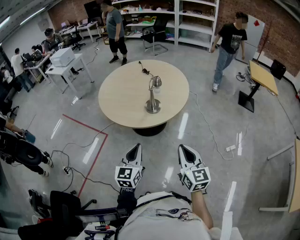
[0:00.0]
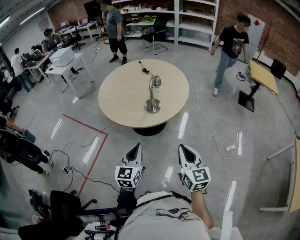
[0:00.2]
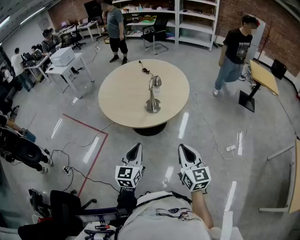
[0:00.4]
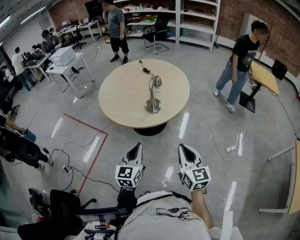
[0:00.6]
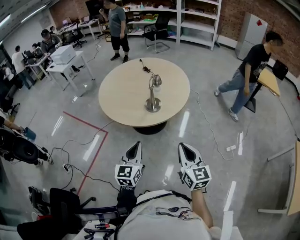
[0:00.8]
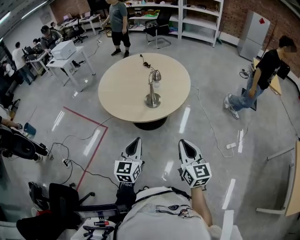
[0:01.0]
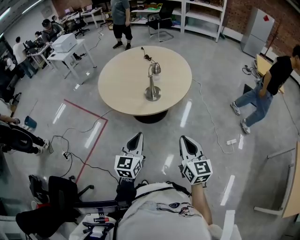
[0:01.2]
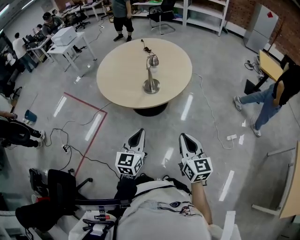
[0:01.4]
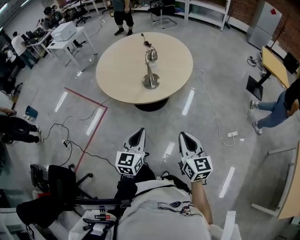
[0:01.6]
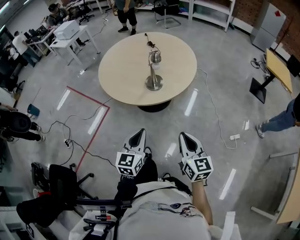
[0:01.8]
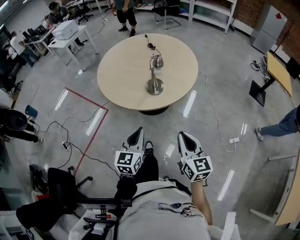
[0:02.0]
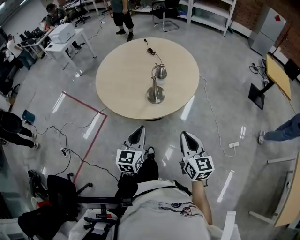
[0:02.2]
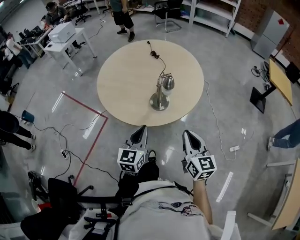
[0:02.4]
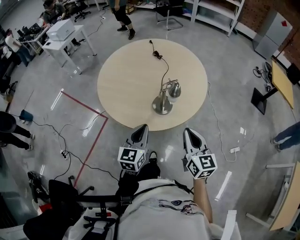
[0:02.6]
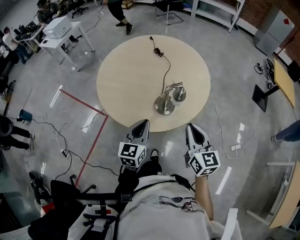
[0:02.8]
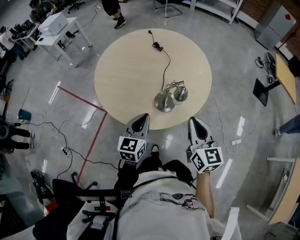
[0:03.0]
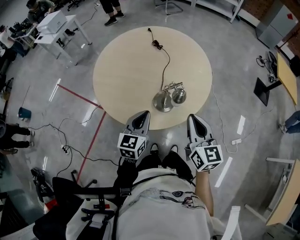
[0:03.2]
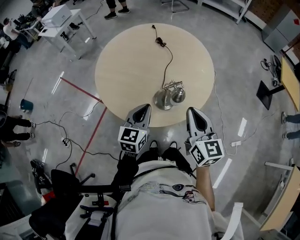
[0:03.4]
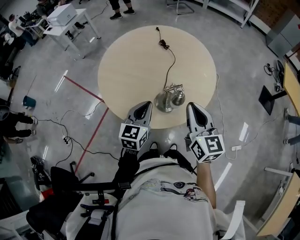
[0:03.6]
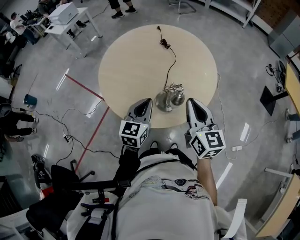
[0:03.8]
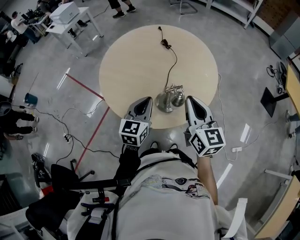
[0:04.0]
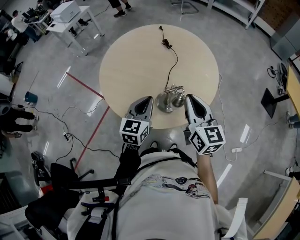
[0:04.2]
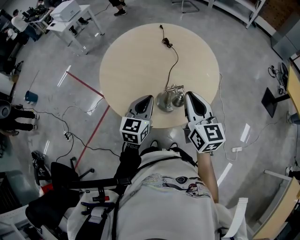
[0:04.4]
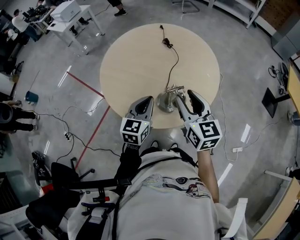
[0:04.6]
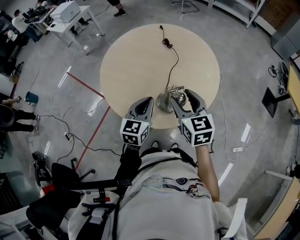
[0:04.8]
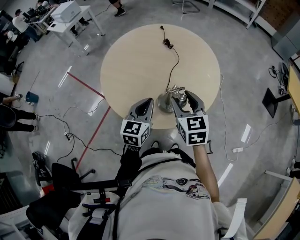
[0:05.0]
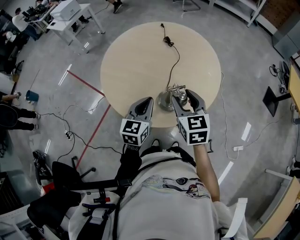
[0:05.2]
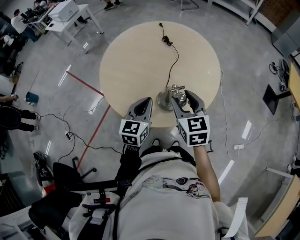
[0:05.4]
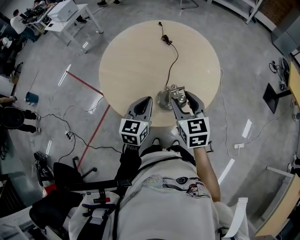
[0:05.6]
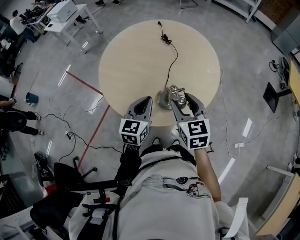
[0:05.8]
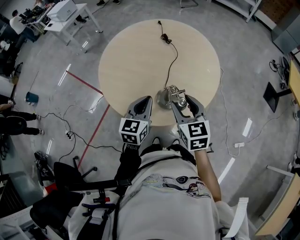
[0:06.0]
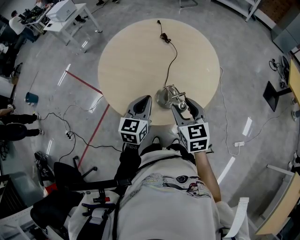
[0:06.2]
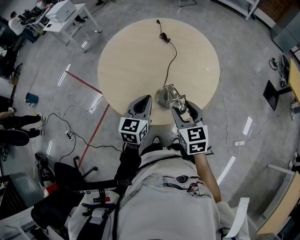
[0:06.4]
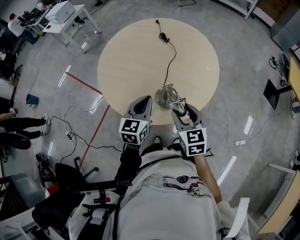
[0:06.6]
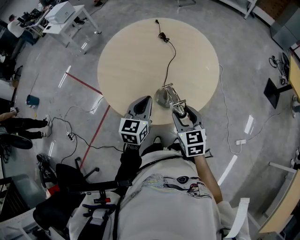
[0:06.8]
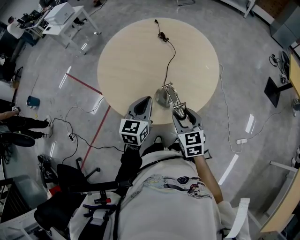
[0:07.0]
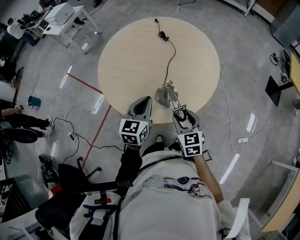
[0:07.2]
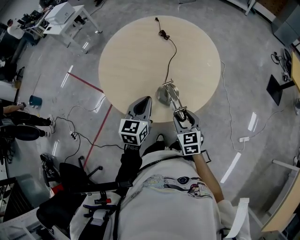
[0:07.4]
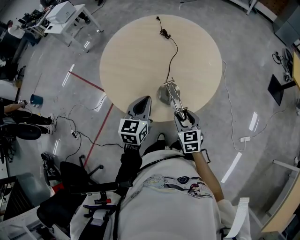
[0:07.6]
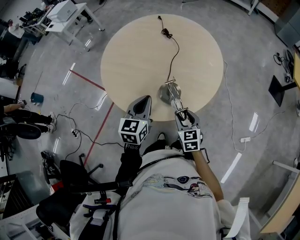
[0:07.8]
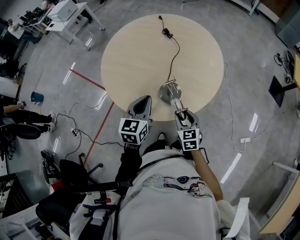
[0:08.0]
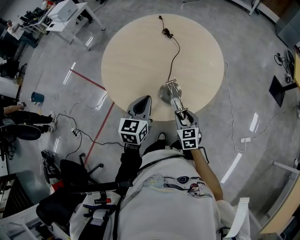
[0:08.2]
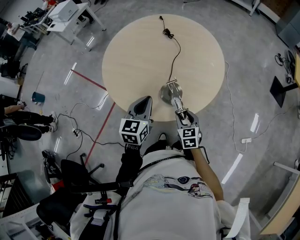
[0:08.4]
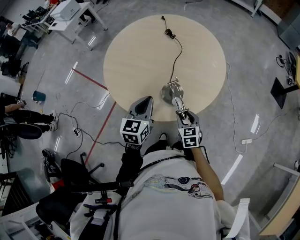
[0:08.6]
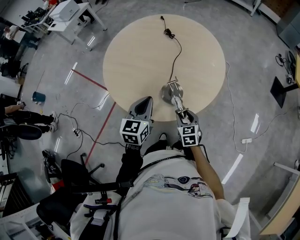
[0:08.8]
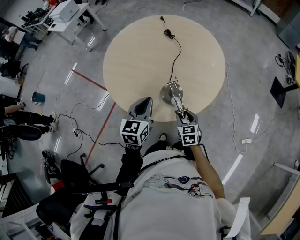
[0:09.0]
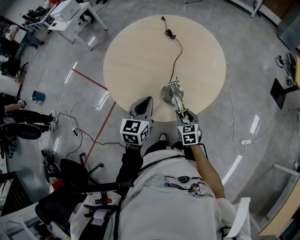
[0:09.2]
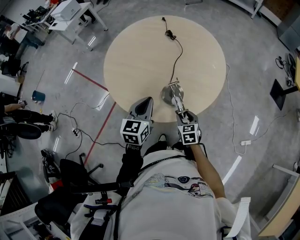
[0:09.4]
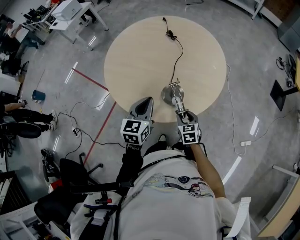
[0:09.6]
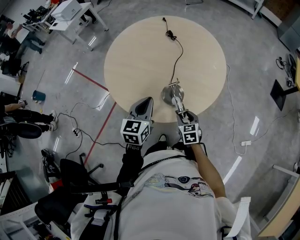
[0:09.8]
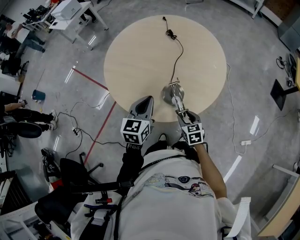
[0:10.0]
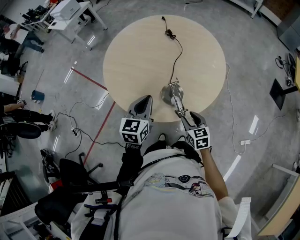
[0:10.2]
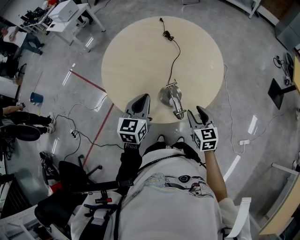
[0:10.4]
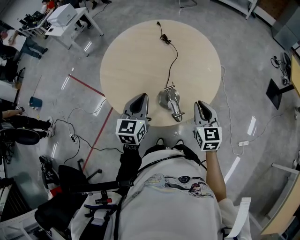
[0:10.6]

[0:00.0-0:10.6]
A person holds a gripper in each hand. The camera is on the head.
0:00.0 to 0:01.6: The grippers both shift to the right by approximately 5 cm.
0:01.6 to 0:03.0: The grippers both shift forward by some 30 cm.
0:03.0 to 0:04.6: Both grippers travel together forward, approximately 10 cm. The right gripper opens.
0:04.6 to 0:06.0: The right gripper is displaced downward by some 5 cm.
0:06.0 to 0:07.6: The right gripper goes some 15 cm downward.
0:07.6 to 0:09.0: The right gripper travels downward by about 5 cm.
0:09.0 to 0:10.6: The right gripper travels upward and to the right by approximately 20 cm, changes its angle by approximately 20 degrees, and closes its fingers.

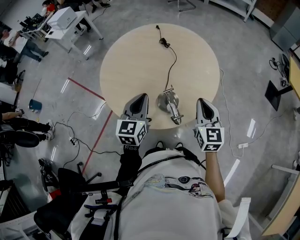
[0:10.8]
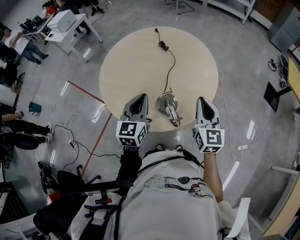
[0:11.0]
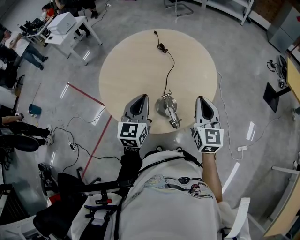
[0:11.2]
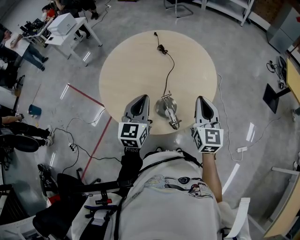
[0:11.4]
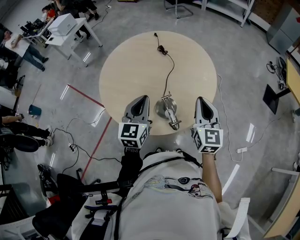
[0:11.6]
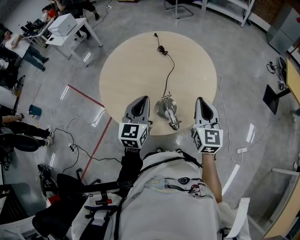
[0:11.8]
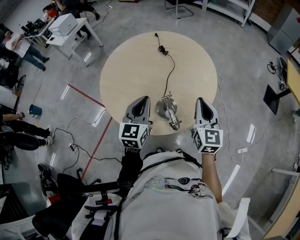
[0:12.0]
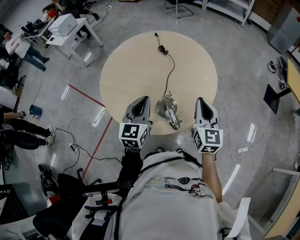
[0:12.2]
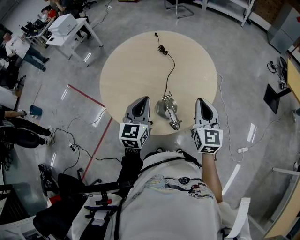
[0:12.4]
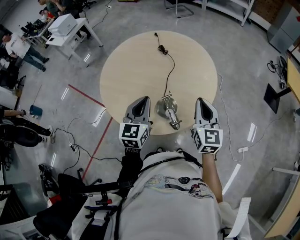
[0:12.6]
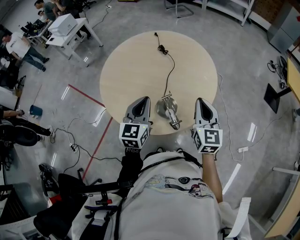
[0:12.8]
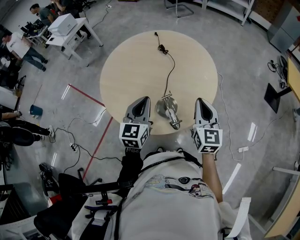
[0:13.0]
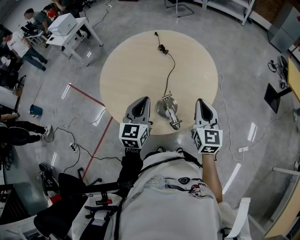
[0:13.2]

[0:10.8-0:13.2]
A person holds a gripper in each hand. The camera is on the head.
0:10.8 to 0:12.0: There are only small adjustments of the grippers.
0:12.0 to 0:13.2: The two grippers keep their place.

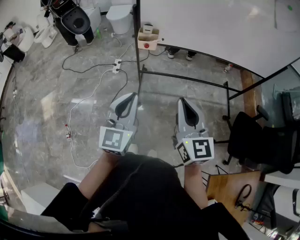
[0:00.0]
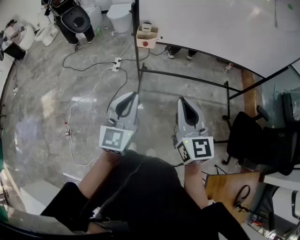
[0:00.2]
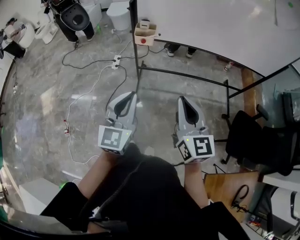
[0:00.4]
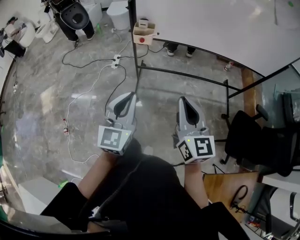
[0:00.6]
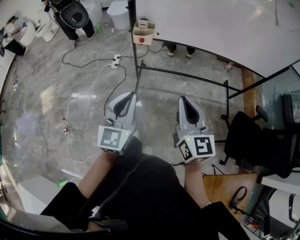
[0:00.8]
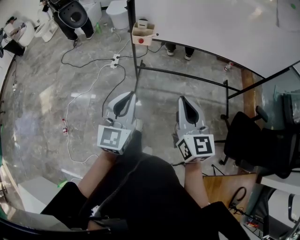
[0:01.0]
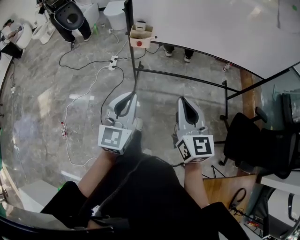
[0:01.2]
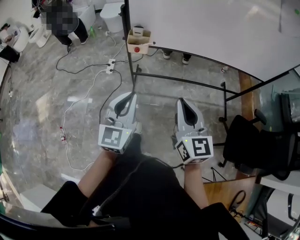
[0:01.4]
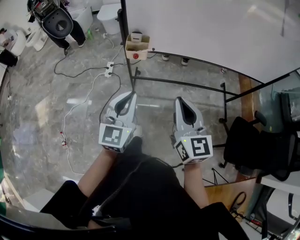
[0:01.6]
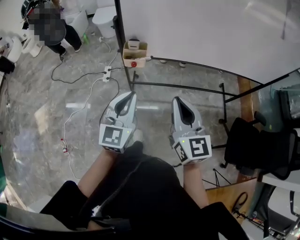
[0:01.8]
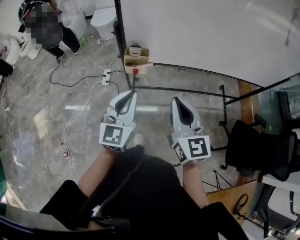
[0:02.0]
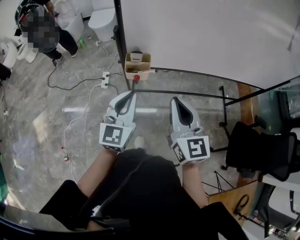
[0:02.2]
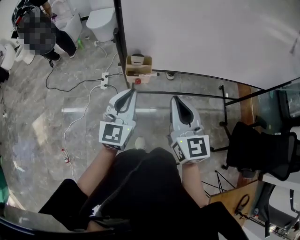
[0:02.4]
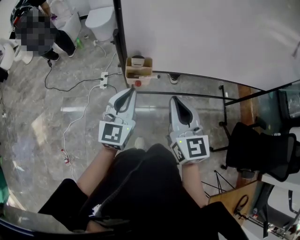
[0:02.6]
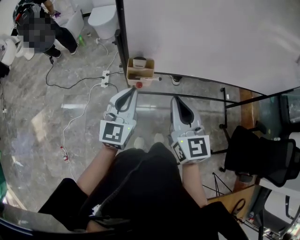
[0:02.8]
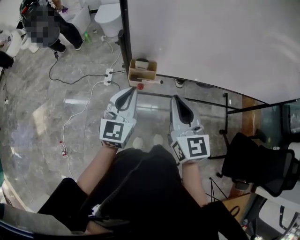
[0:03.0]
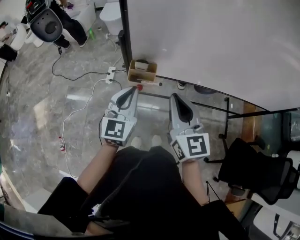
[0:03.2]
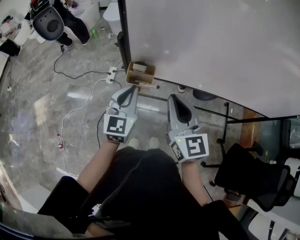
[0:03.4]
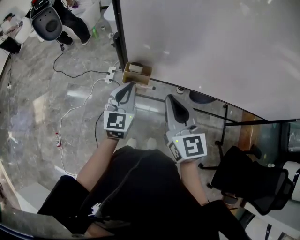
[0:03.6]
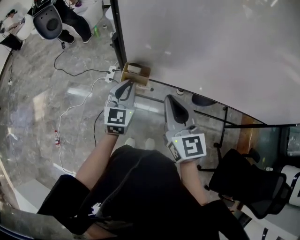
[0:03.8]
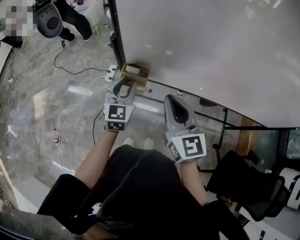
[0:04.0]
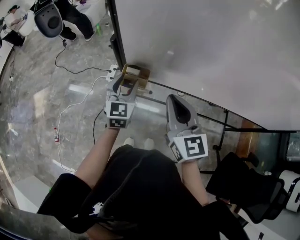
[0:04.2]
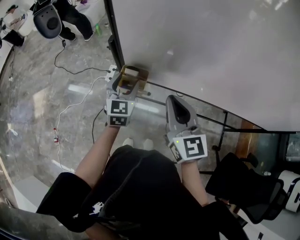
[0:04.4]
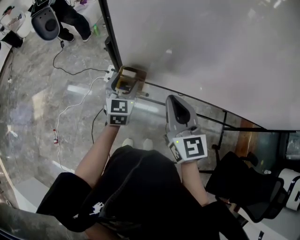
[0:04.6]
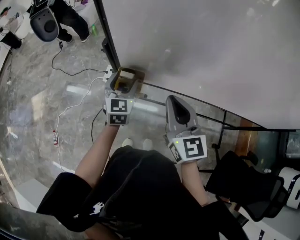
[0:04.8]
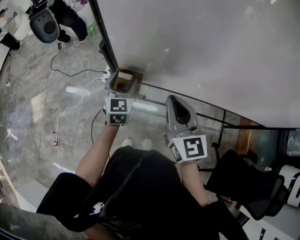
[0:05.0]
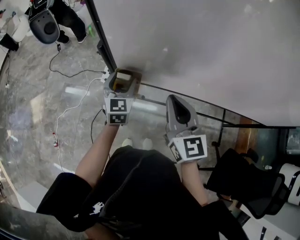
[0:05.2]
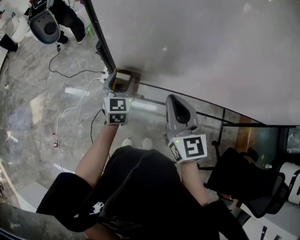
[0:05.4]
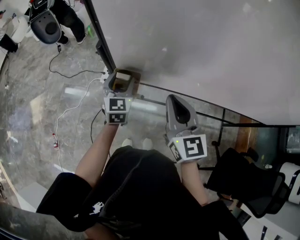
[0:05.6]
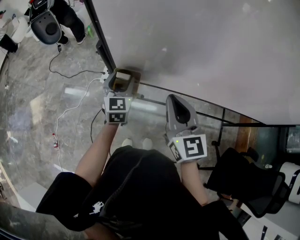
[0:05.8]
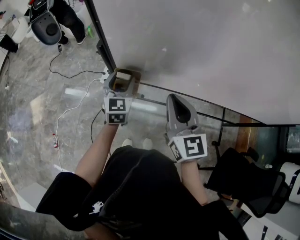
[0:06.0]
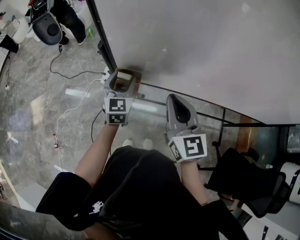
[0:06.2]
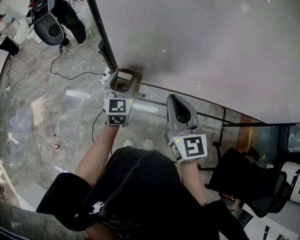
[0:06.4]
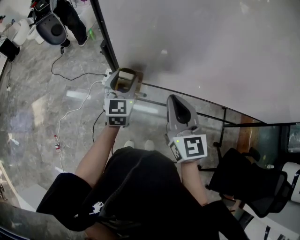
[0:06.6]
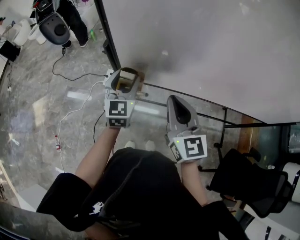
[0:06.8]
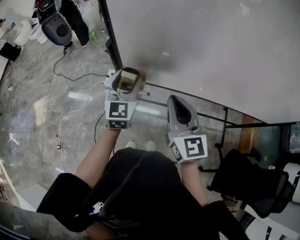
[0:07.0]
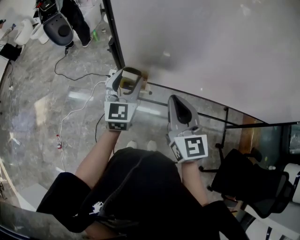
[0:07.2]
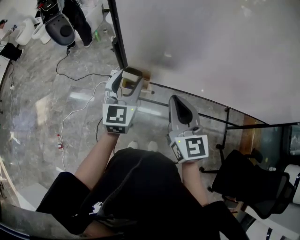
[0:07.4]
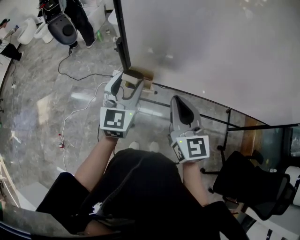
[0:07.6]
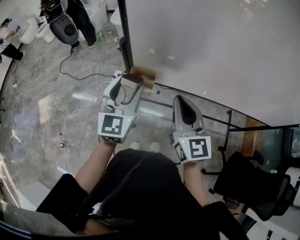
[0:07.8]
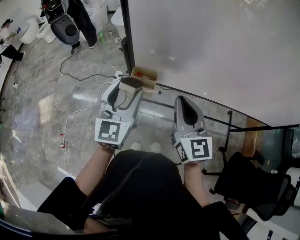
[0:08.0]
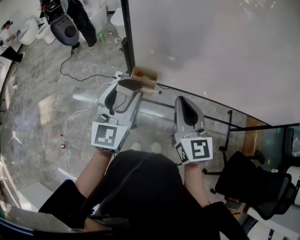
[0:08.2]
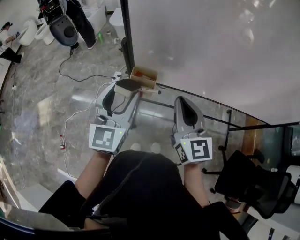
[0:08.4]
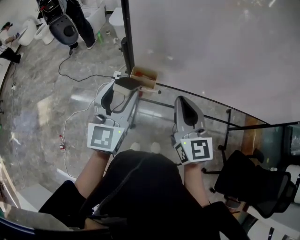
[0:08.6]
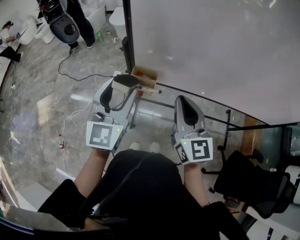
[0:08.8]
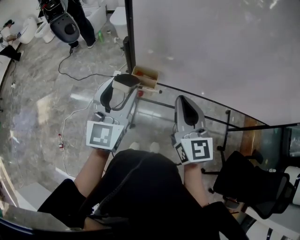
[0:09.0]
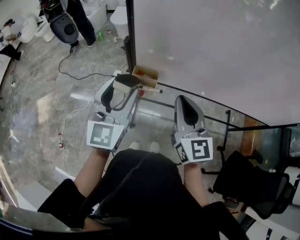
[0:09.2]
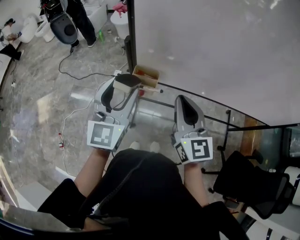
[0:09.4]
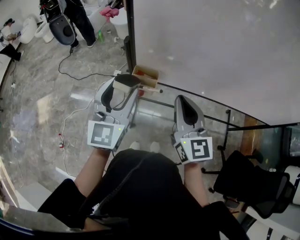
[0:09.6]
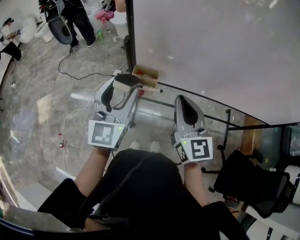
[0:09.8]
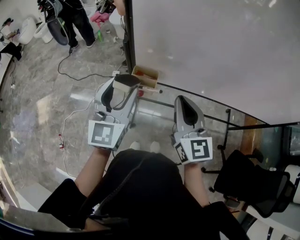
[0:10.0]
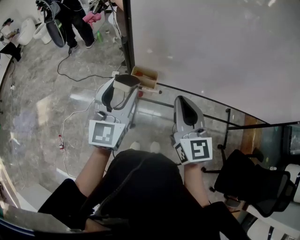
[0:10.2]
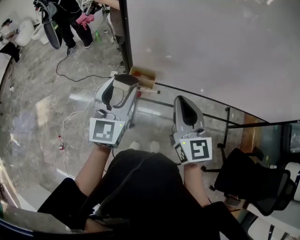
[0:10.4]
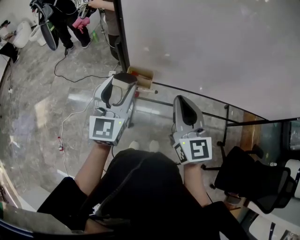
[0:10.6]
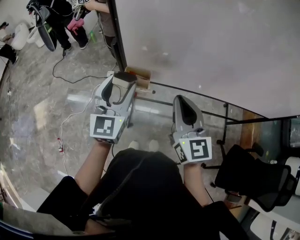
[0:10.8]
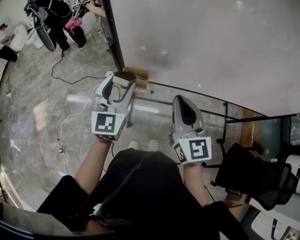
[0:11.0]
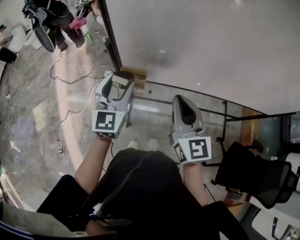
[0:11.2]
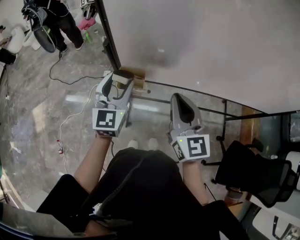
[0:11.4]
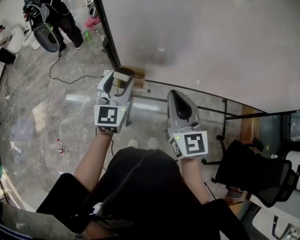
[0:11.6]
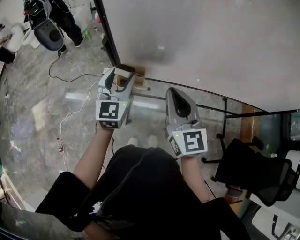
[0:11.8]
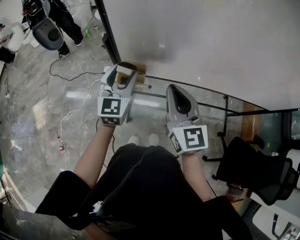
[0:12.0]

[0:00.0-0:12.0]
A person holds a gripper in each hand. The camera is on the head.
0:00.0 to 0:01.6: The two grippers go approximately 10 cm forward.
0:01.6 to 0:03.0: Both grippers move forward, some 20 cm.
0:03.0 to 0:04.4: The left gripper travels forward and downward by roughly 15 cm, swivels some 20 degrees, and opens up, while the right gripper heads forward and to the right, covering approximately 10 cm.
0:04.4 to 0:06.0: The grippers stay close to where they were, moving slightly.
0:06.0 to 0:07.6: The left gripper goes approximately 15 cm upward and backward, while the right gripper ends up about 5 cm from where it was.
0:07.6 to 0:09.0: The left gripper travels backward by some 5 cm.
0:09.0 to 0:10.4: The grippers stay close to where they were, moving slightly.
0:10.4 to 0:12.0: The left gripper shifts roughly 10 cm forward and downward.
